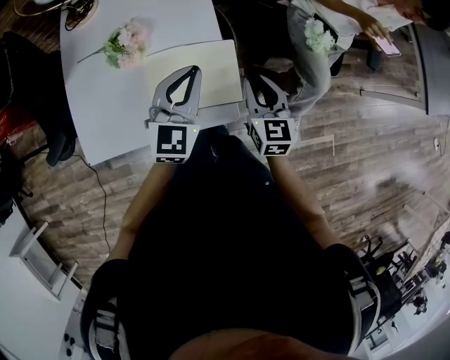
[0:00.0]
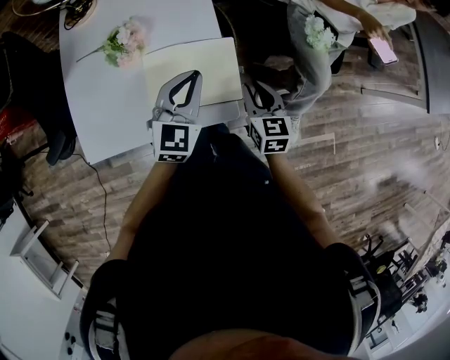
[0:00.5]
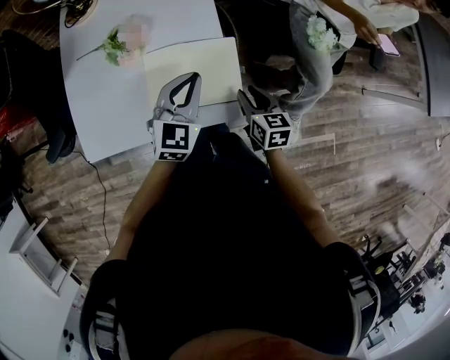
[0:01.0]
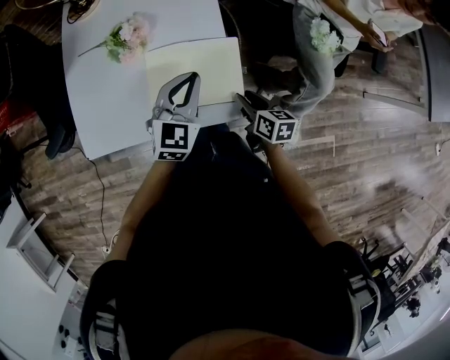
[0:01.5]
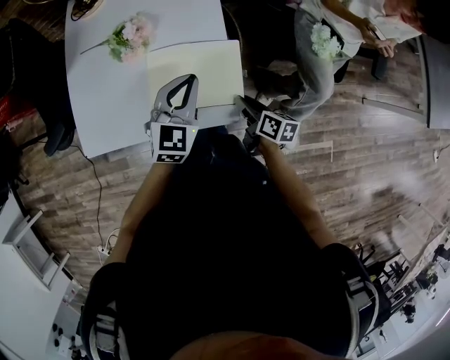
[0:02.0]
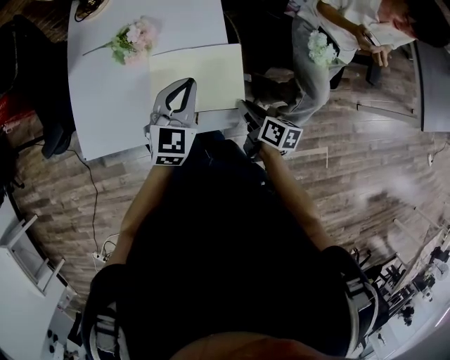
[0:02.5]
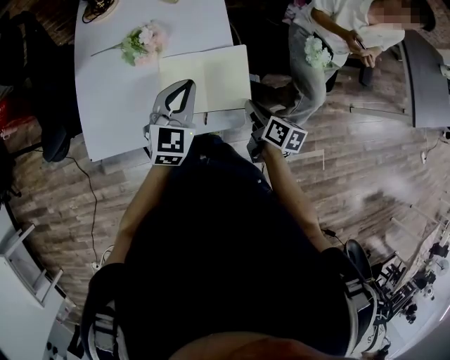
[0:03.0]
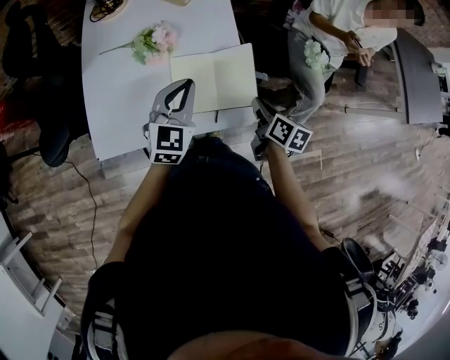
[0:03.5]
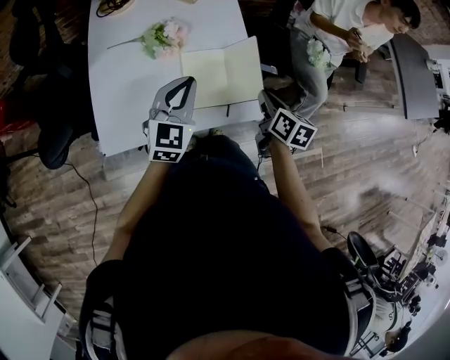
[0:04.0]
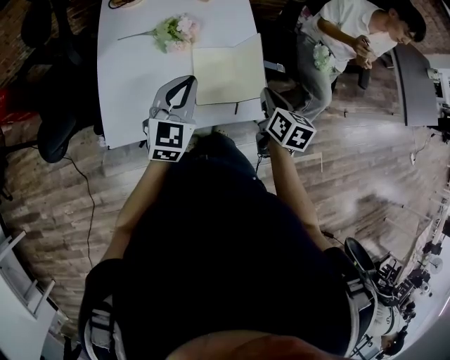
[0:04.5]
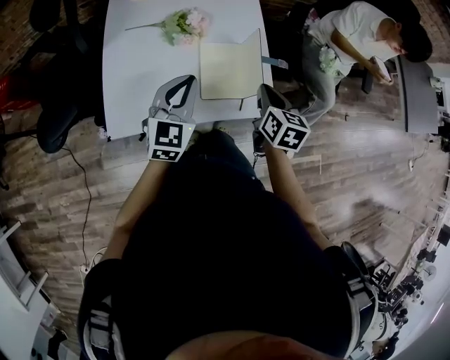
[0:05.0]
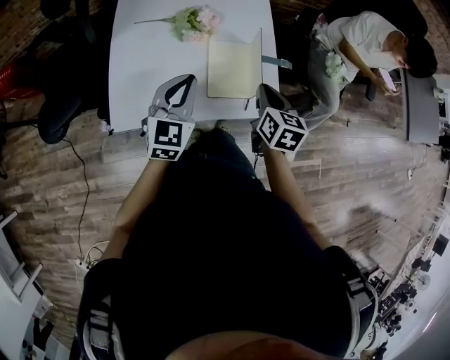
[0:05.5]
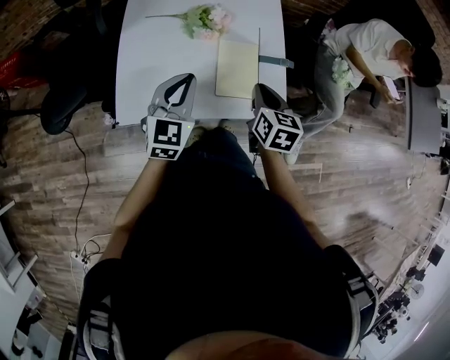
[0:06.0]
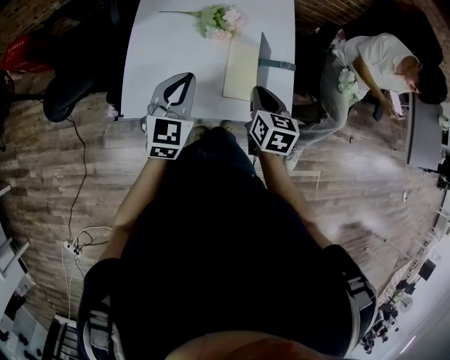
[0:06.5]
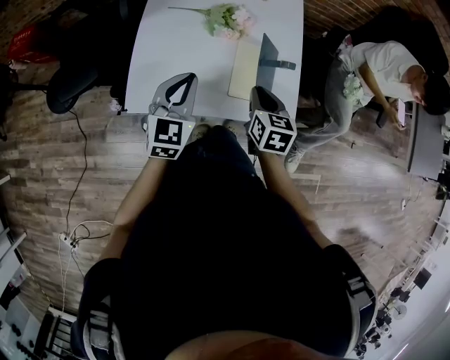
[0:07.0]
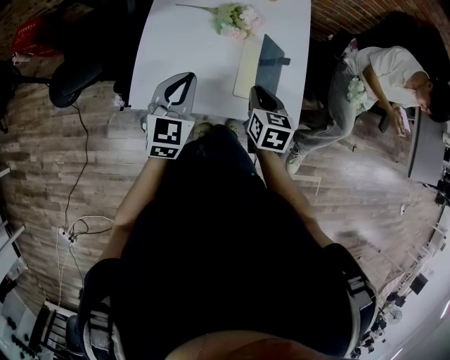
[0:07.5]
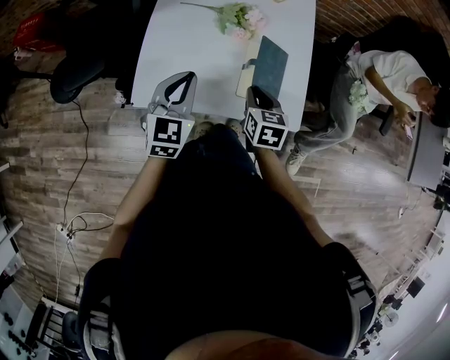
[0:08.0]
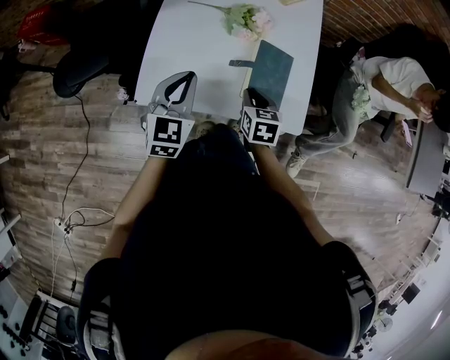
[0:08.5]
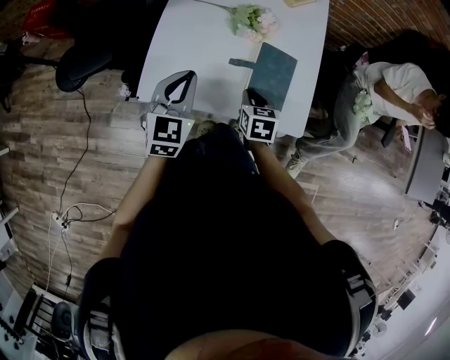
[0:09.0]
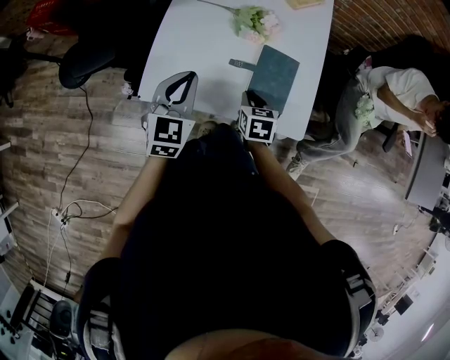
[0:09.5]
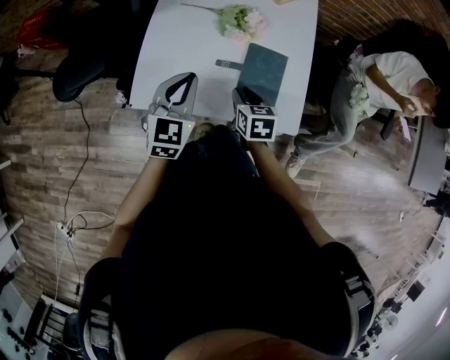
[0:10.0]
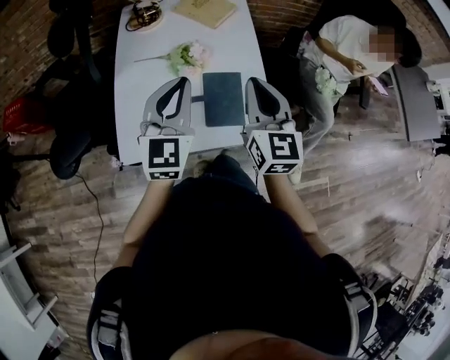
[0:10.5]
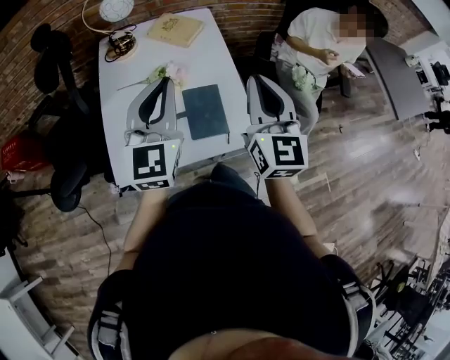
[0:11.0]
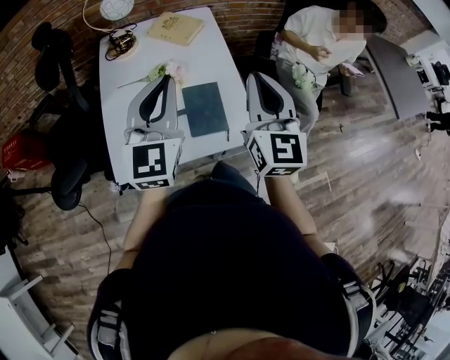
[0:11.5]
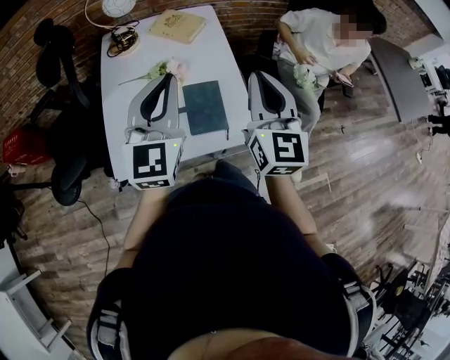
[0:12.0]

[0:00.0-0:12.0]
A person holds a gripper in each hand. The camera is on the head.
0:00.0 to 0:02.0: The right gripper goes some 15 cm downward, and rolls clockwise, seen from behind, by some 40 degrees. The left gripper goes roughly 5 cm downward.
0:02.0 to 0:04.0: The left gripper travels to the left and upward by roughly 15 cm. Meanwhile the right gripper goes approximately 15 cm upward, and rotates approximately 20 degrees.
0:04.0 to 0:06.0: The grippers both shift to the left by roughly 10 cm. The right gripper turns by roughly 20 degrees.
0:06.0 to 0:08.0: The left gripper is displaced to the left by some 5 cm; the right gripper travels to the left and downward by roughly 10 cm.
0:10.0 to 0:12.0: Both grippers travel together upward and to the right, approximately 30 cm. The left gripper turns by approximately 30 degrees. The right gripper points its fingers some 50 degrees further upward, and closes.

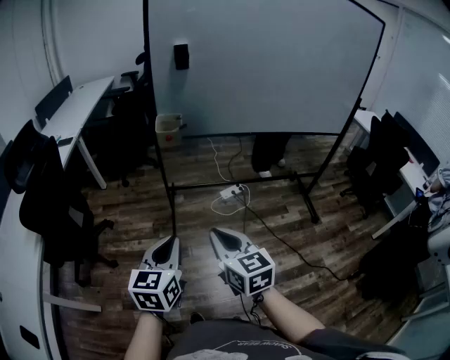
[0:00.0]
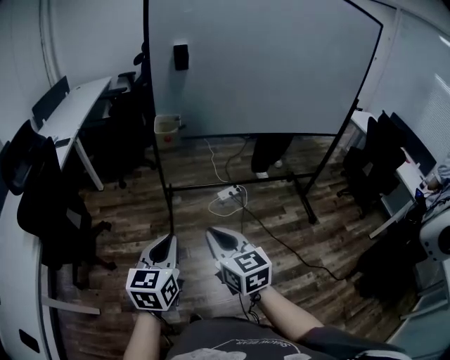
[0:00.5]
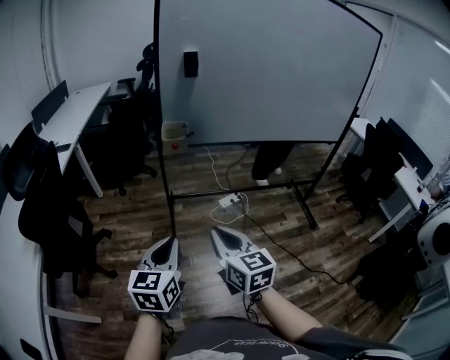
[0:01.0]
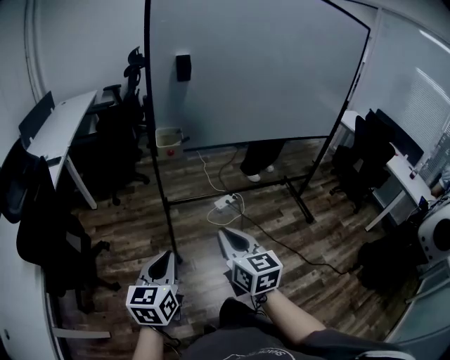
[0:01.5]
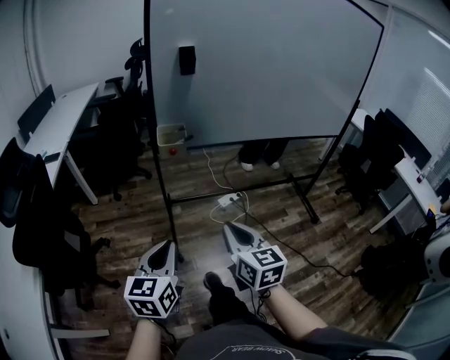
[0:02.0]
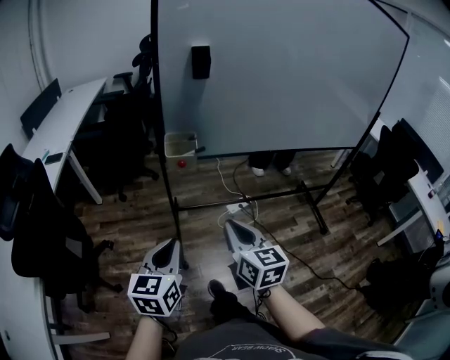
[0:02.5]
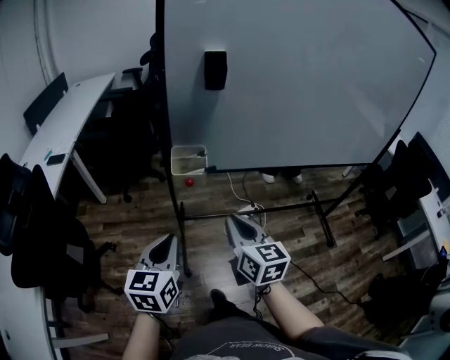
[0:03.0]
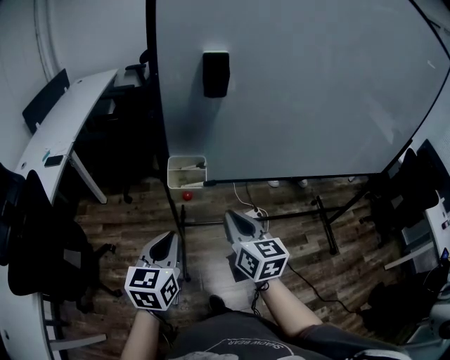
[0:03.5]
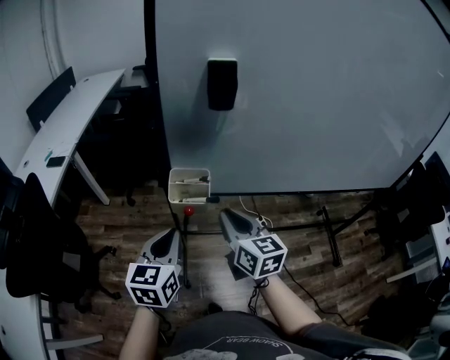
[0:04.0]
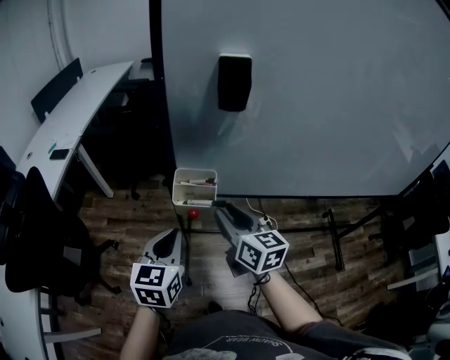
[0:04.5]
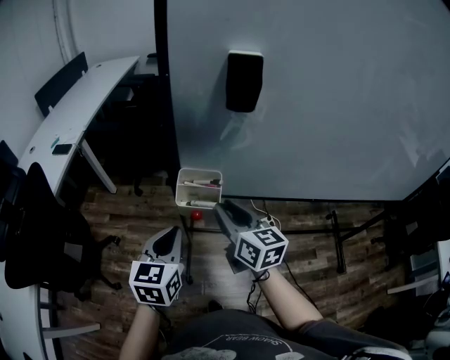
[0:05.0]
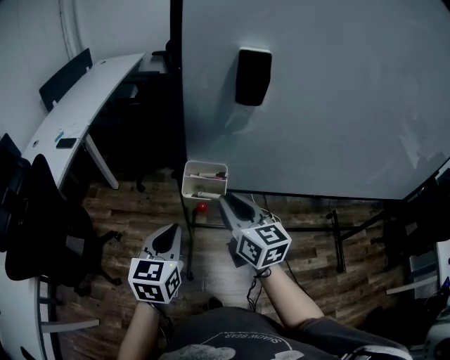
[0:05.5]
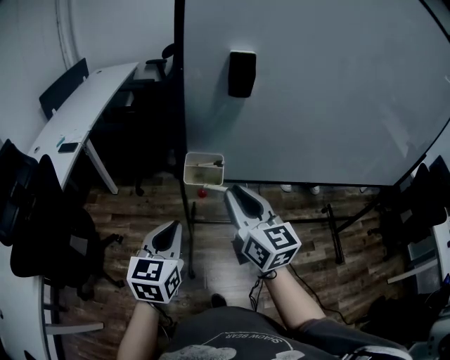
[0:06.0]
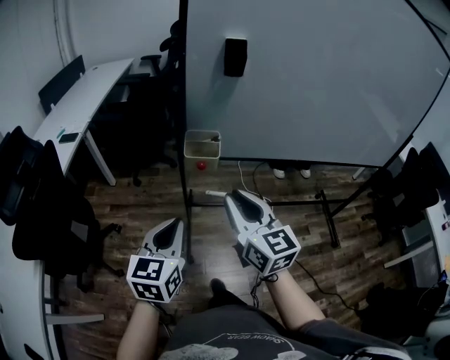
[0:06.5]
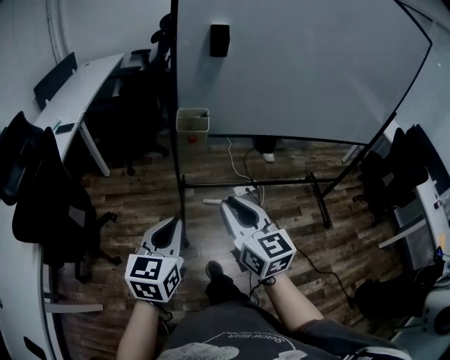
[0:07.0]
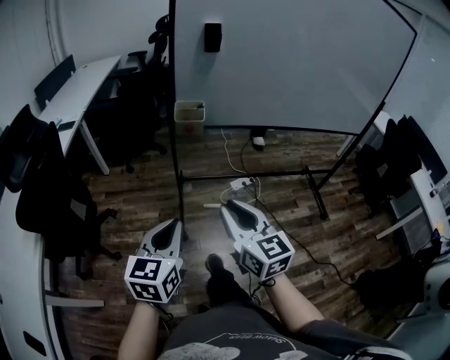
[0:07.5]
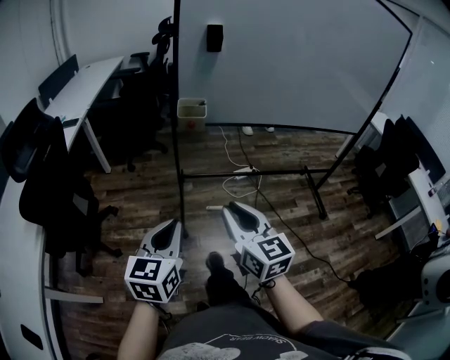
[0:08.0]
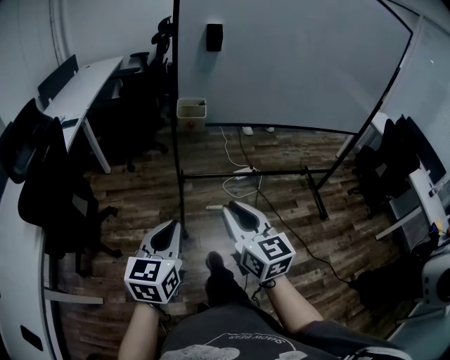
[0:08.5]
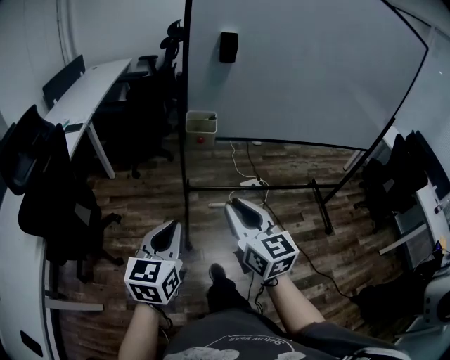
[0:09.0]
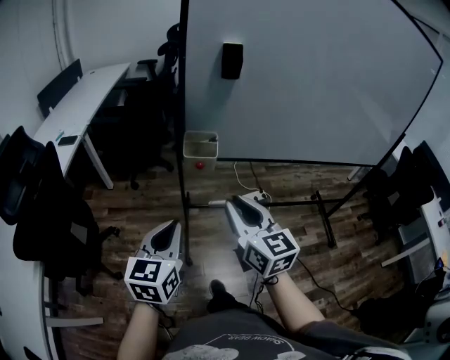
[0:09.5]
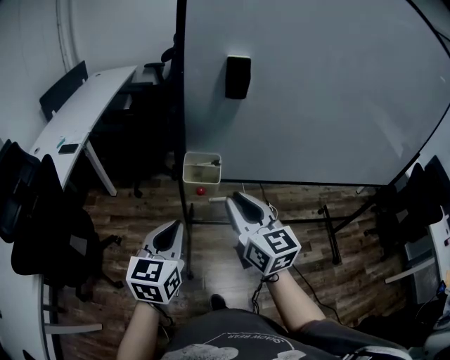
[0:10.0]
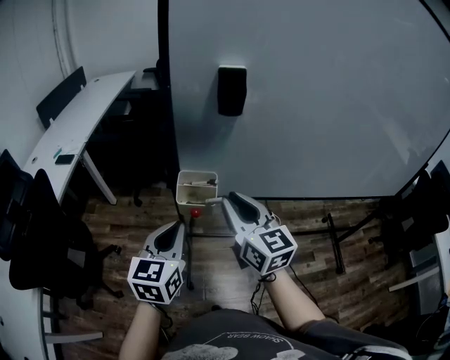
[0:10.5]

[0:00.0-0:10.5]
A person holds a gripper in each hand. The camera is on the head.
0:00.0 to 0:02.0: The left gripper heads forward and to the left, covering roughly 10 cm; the right gripper is displaced forward by approximately 10 cm.
0:02.0 to 0:04.0: Both grippers move forward, about 35 cm.
0:04.0 to 0:06.5: The right gripper heads backward and upward, covering roughly 15 cm; the left gripper is displaced backward by roughly 15 cm.
0:06.5 to 0:08.5: The two grippers go approximately 20 cm backward.
0:08.5 to 0:10.5: The grippers both shift forward by roughly 35 cm.

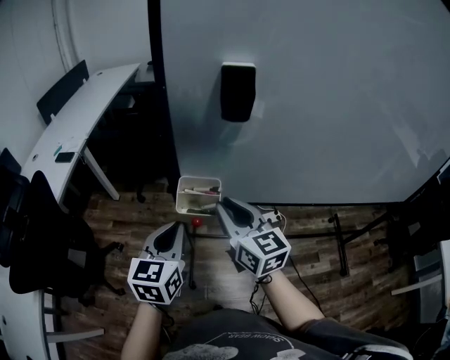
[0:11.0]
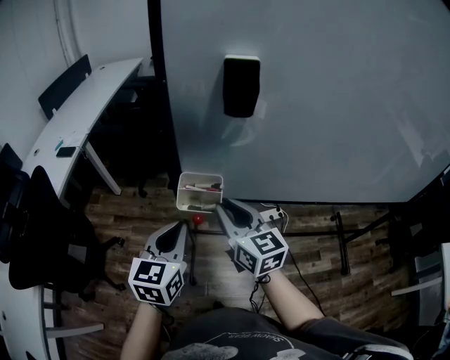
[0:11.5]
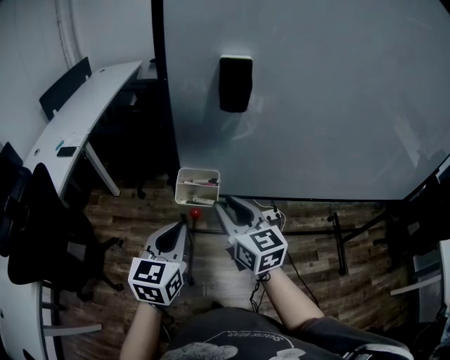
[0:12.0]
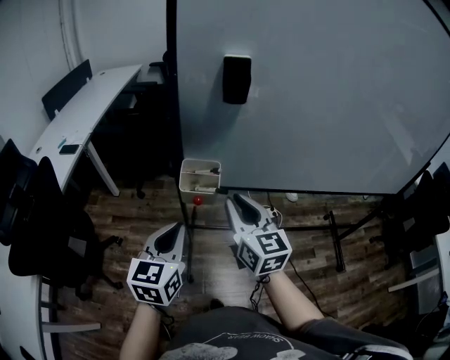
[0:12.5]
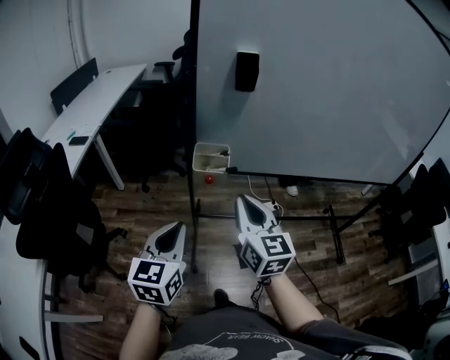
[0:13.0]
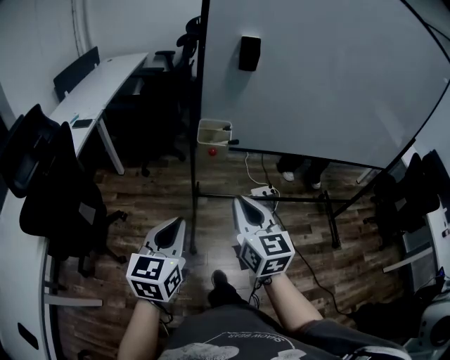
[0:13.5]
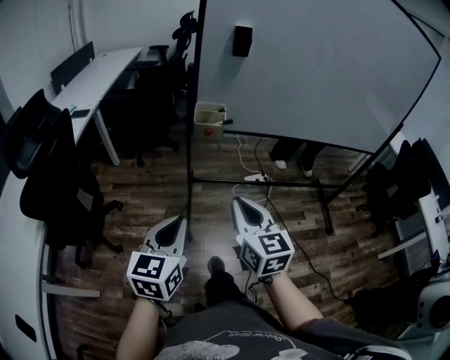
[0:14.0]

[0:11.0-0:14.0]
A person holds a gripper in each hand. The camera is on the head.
0:11.0 to 0:12.5: The two grippers go roughly 5 cm backward.
0:12.5 to 0:14.0: The grippers both shift backward by some 25 cm.

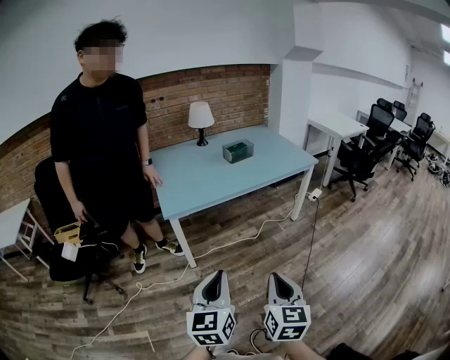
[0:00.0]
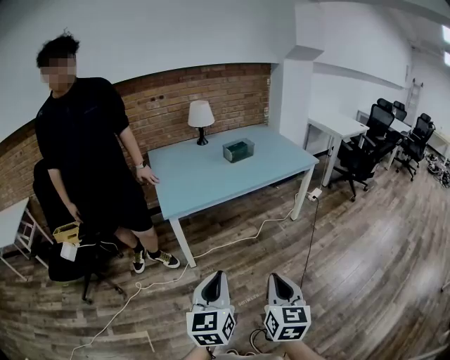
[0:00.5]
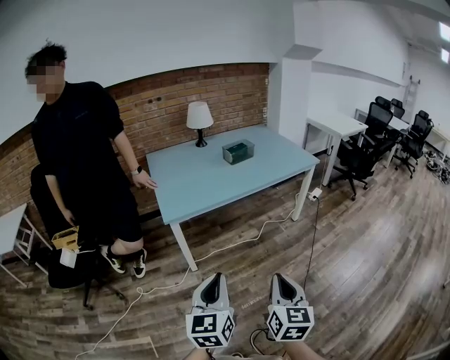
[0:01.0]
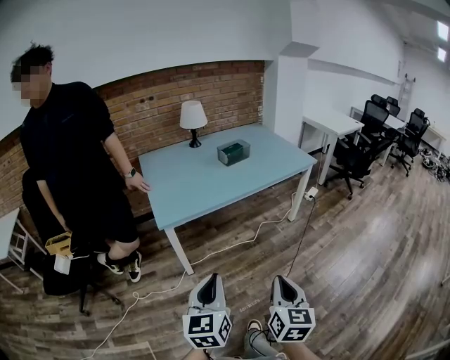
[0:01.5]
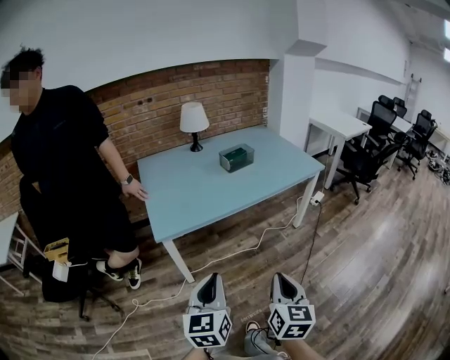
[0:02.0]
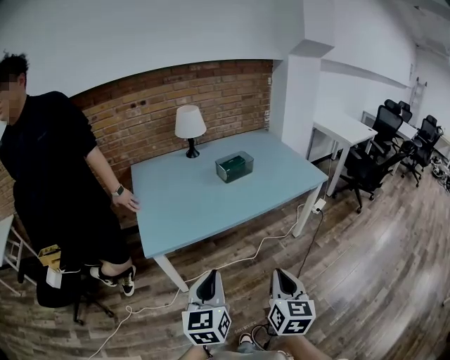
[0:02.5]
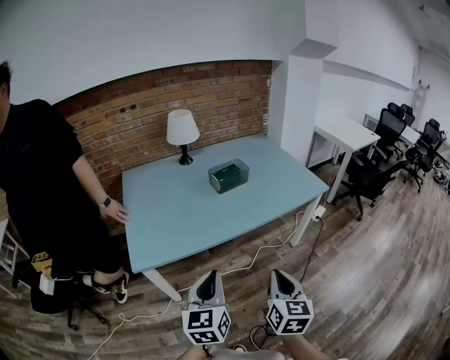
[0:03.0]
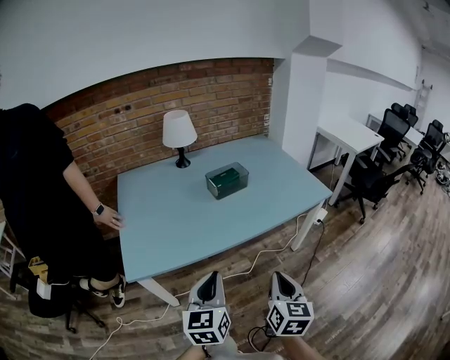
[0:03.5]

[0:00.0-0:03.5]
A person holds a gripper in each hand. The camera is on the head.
0:00.0 to 0:02.0: Both grippers move forward, approximately 15 cm.
0:02.0 to 0:03.5: Both grippers travel together forward, approximately 25 cm.
